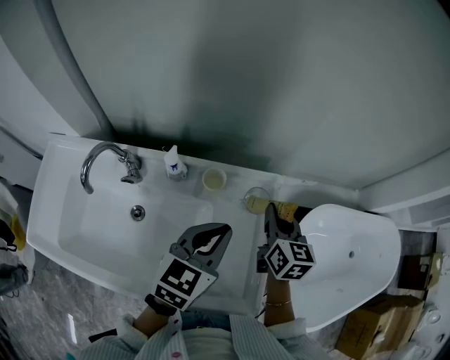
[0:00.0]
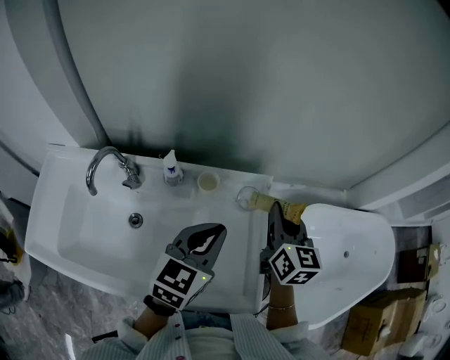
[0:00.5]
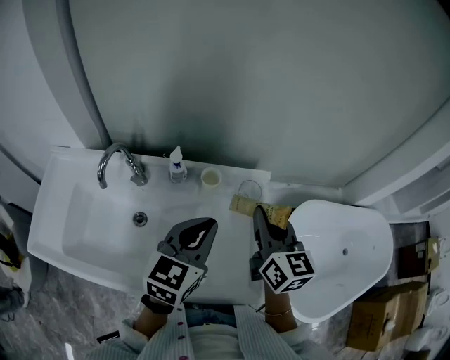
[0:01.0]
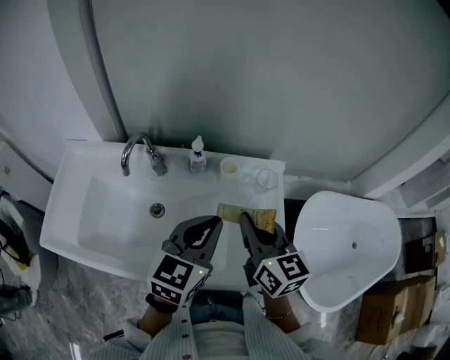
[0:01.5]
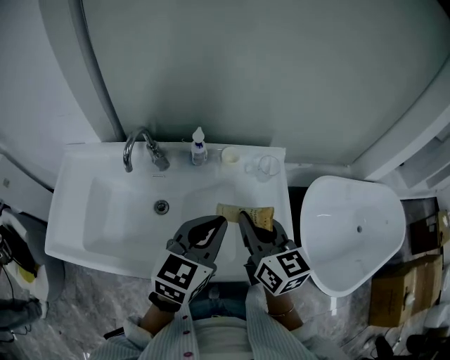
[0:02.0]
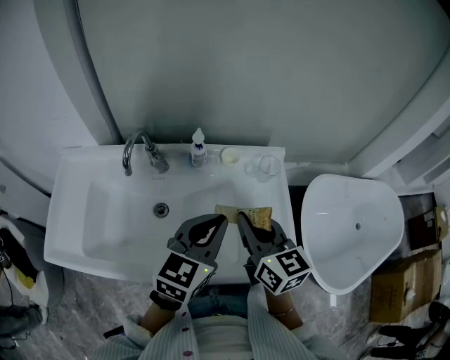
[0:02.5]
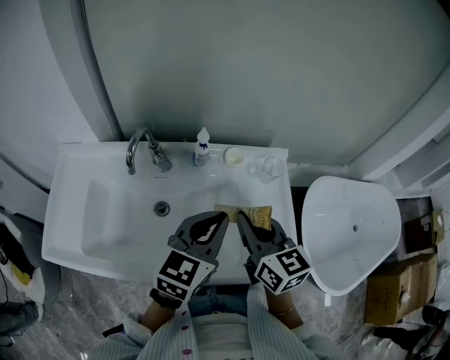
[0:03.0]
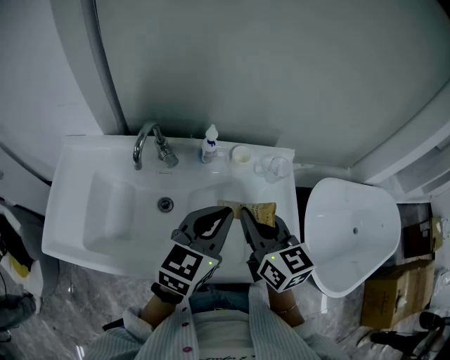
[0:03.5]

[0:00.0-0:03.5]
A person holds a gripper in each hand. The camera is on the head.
0:00.0 to 0:02.0: The left gripper is displaced backward and to the left by roughly 15 cm. Meanwhile the right gripper travels backward, to the left and upward by approximately 25 cm.
0:02.0 to 0:03.5: The grippers make only small movements.

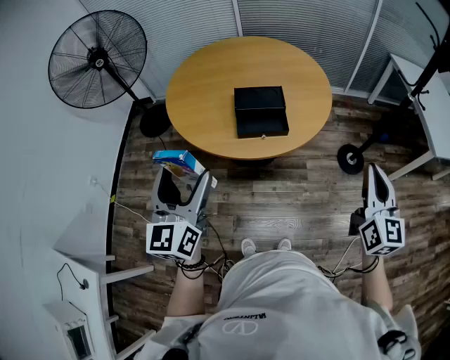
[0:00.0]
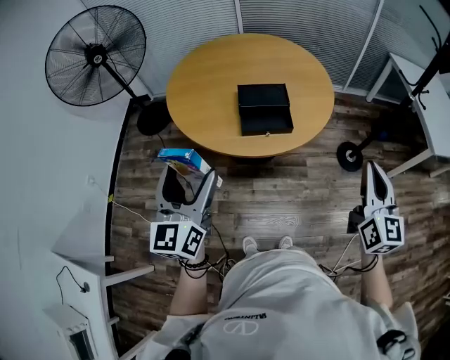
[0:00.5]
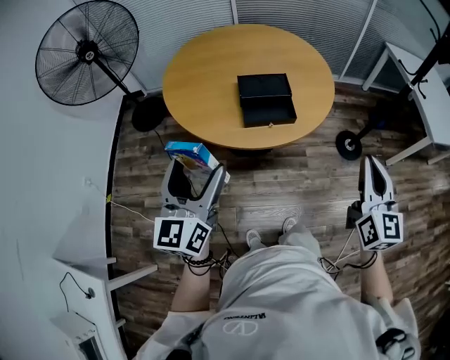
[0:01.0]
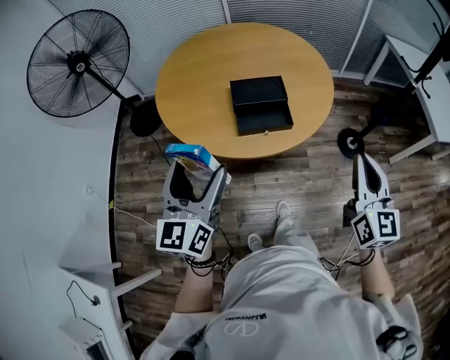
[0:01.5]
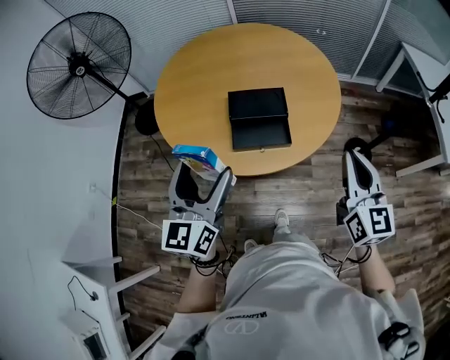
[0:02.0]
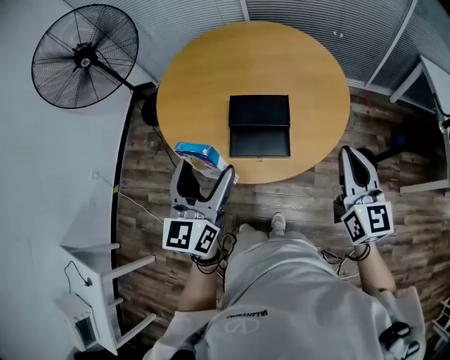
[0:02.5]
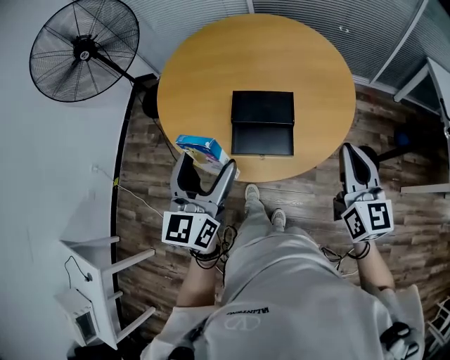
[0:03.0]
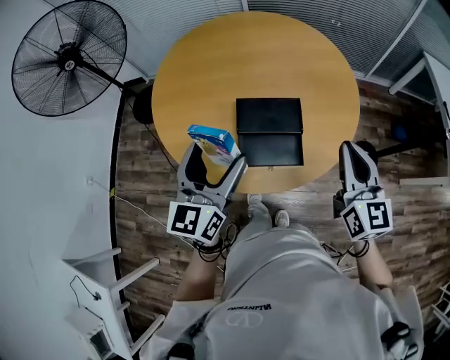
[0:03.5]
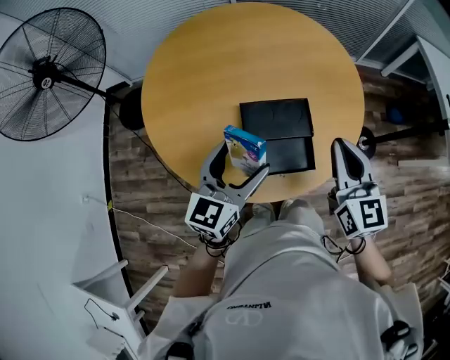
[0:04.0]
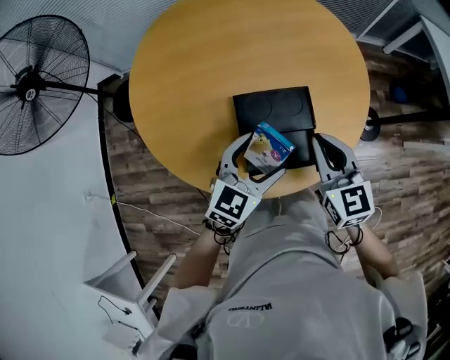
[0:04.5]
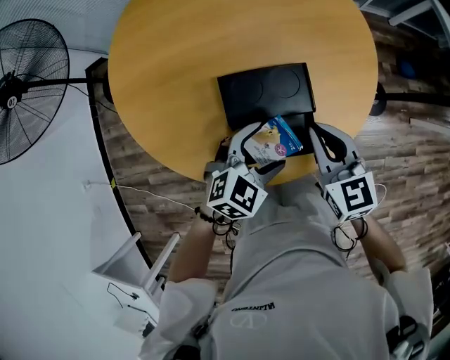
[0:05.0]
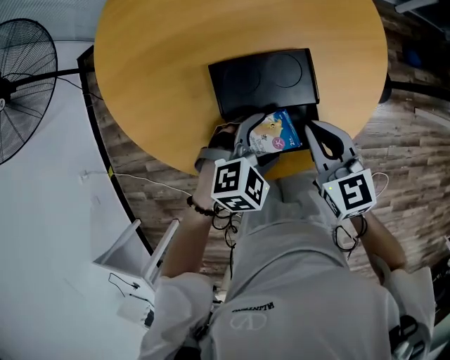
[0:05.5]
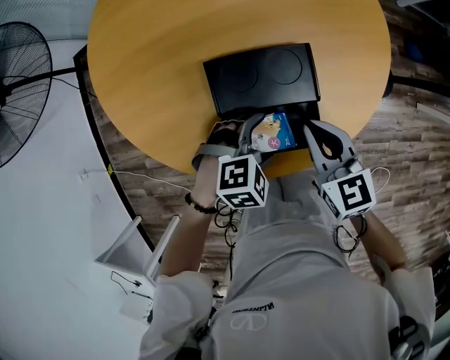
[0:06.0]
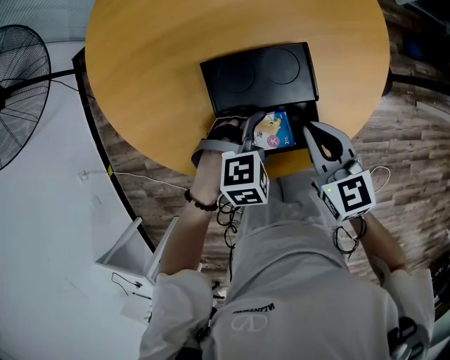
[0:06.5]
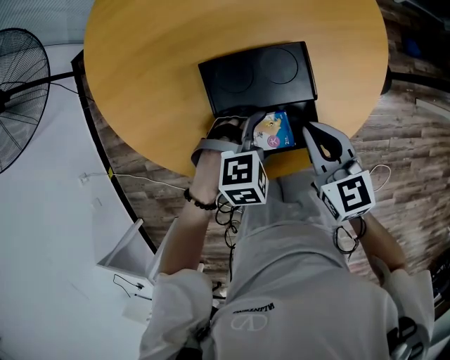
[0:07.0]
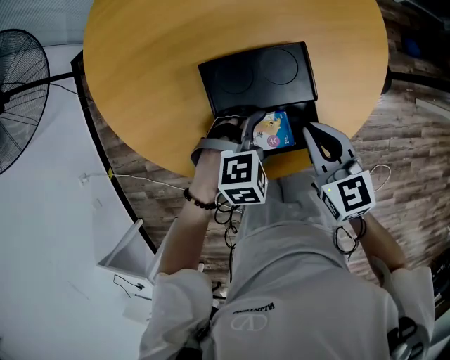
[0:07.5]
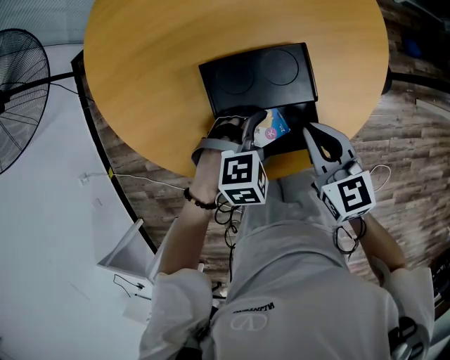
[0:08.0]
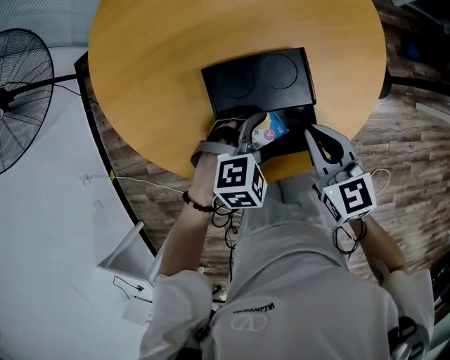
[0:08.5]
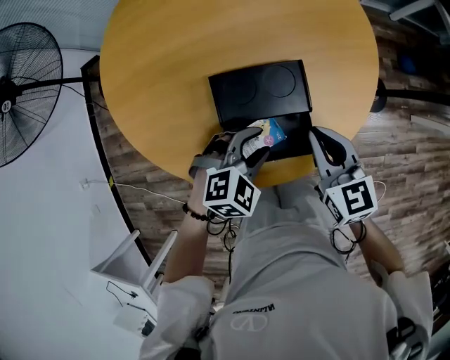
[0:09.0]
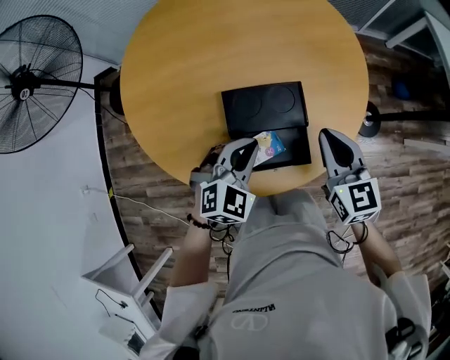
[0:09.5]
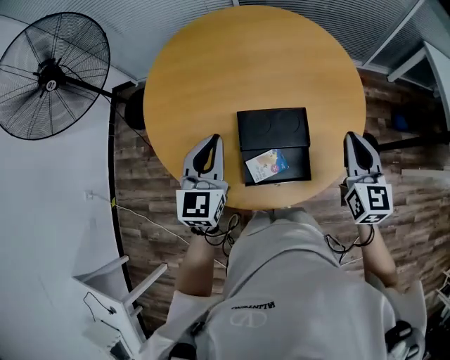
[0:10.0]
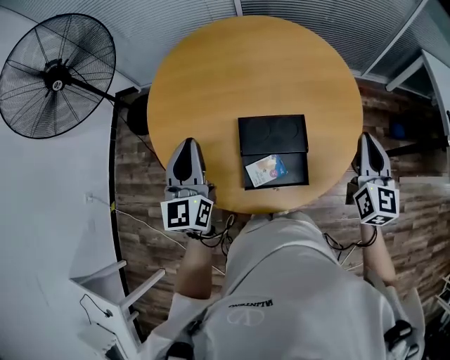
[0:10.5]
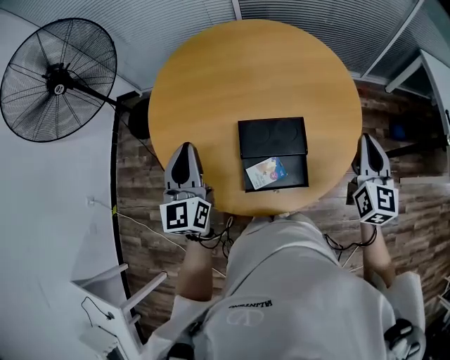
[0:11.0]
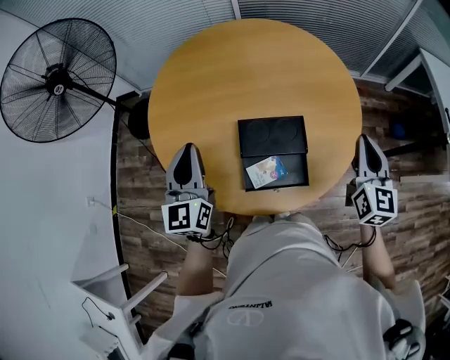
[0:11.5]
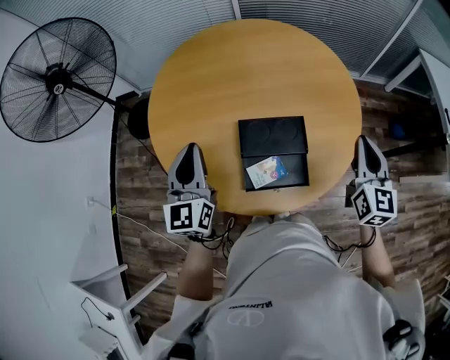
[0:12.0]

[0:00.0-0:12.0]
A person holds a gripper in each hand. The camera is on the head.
0:00.0 to 0:02.0: Both grippers move forward, about 15 cm.
0:02.0 to 0:04.0: The right gripper travels forward and to the left by approximately 25 cm; the left gripper is displaced forward and downward by some 25 cm, and turns by about 20 degrees.
0:04.0 to 0:06.0: The grippers both shift downward by about 25 cm. The right gripper changes its angle by roughly 30 degrees, while the left gripper points its fingers some 50 degrees further downward.
0:06.0 to 0:08.0: The grippers make only small movements.
0:08.0 to 0:10.0: The left gripper is displaced upward and to the left by roughly 30 cm, tilts its fingers about 50 degrees upward, and closes, while the right gripper moves upward and to the right, about 20 cm, and swivels approximately 30 degrees.
0:10.0 to 0:12.0: The right gripper shifts by some 5 cm. Meanwhile the left gripper goes roughly 5 cm to the left.

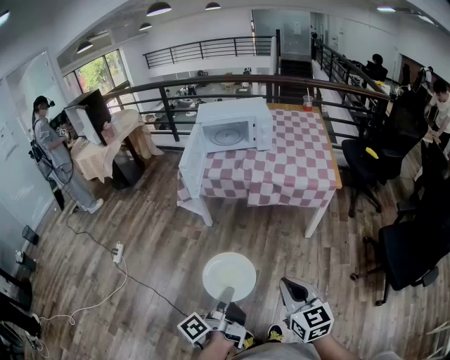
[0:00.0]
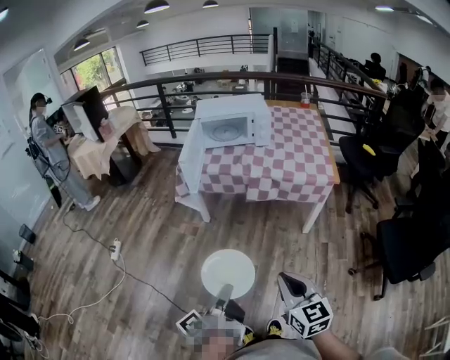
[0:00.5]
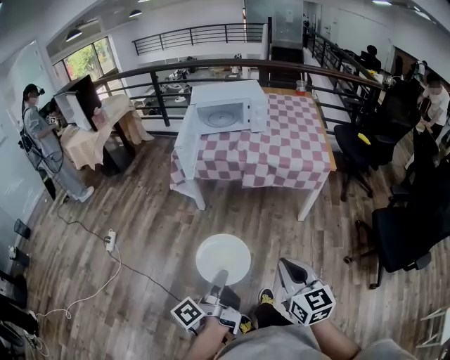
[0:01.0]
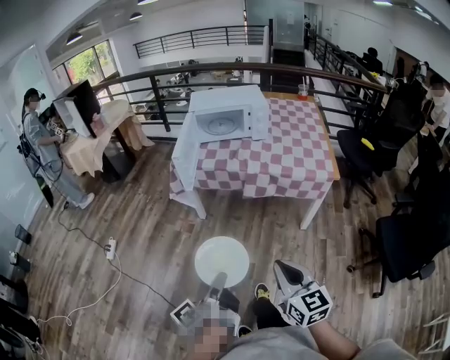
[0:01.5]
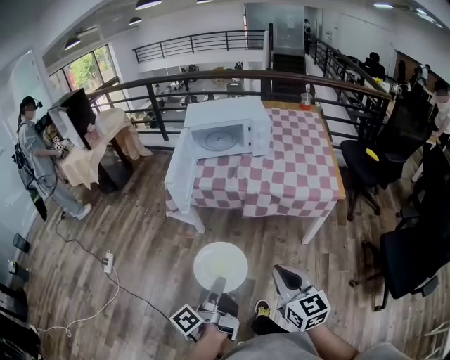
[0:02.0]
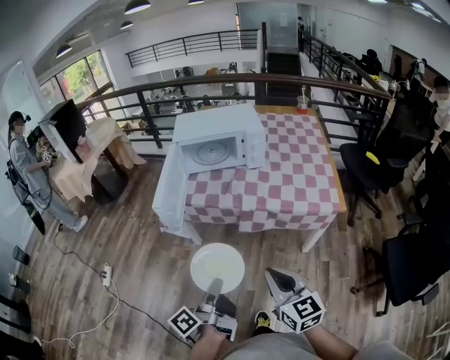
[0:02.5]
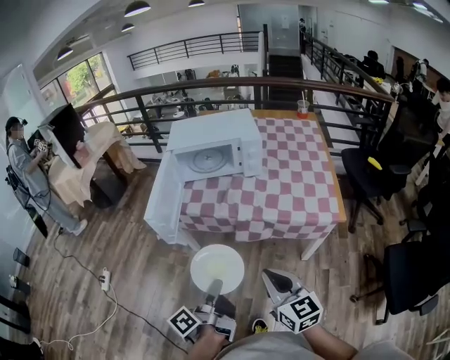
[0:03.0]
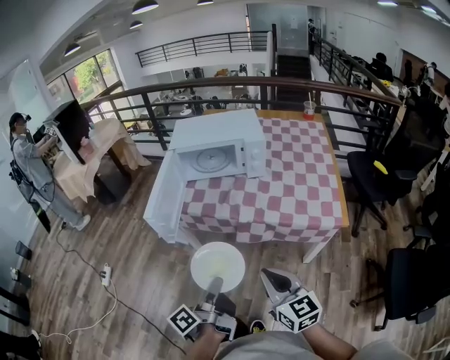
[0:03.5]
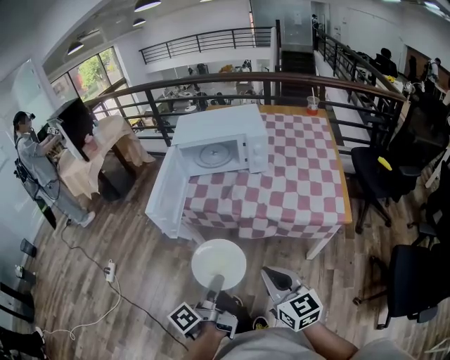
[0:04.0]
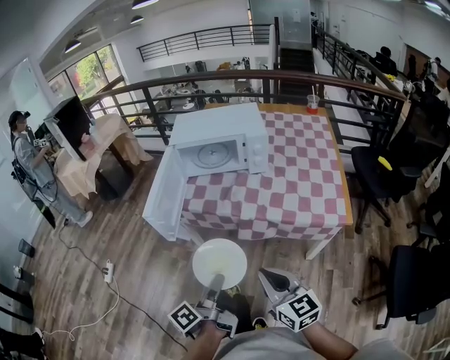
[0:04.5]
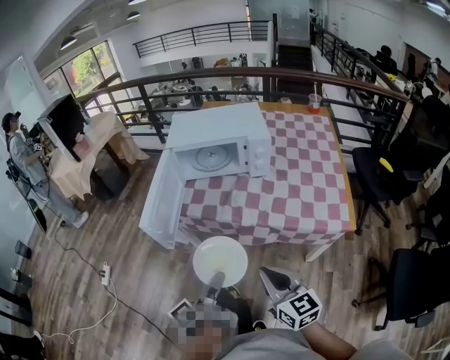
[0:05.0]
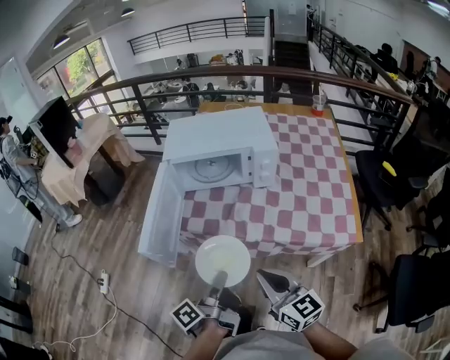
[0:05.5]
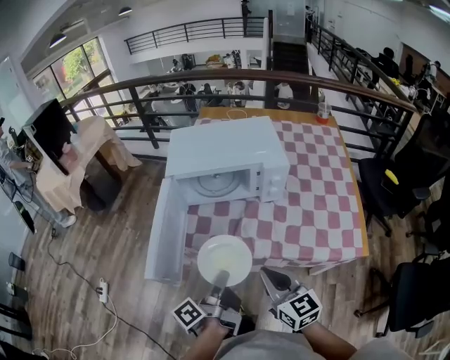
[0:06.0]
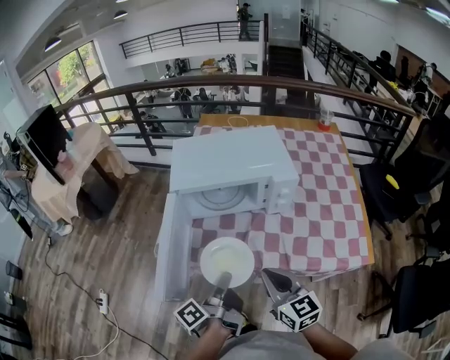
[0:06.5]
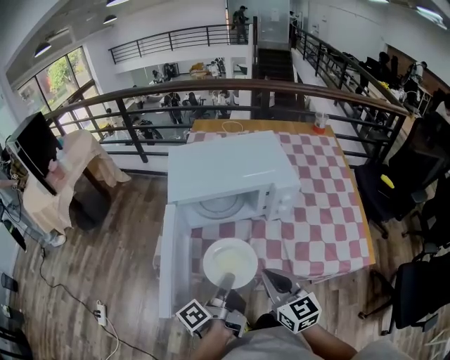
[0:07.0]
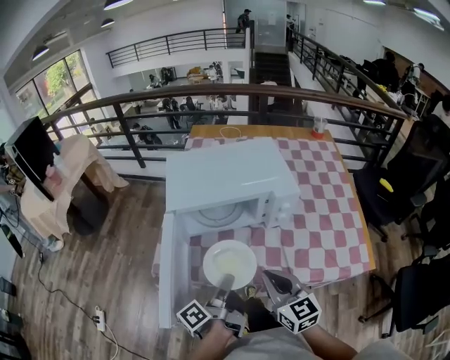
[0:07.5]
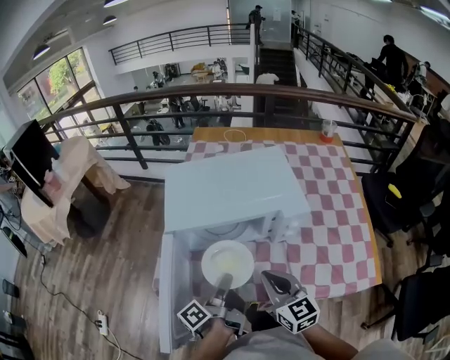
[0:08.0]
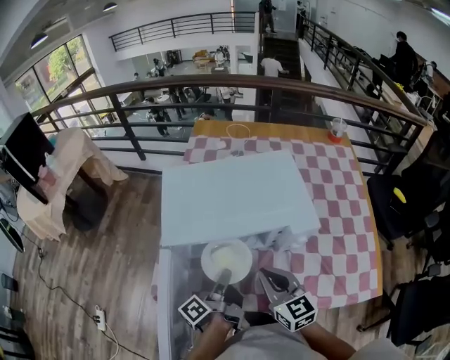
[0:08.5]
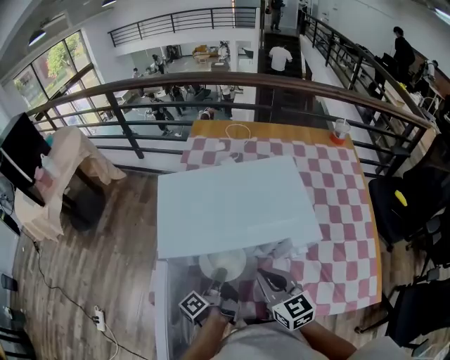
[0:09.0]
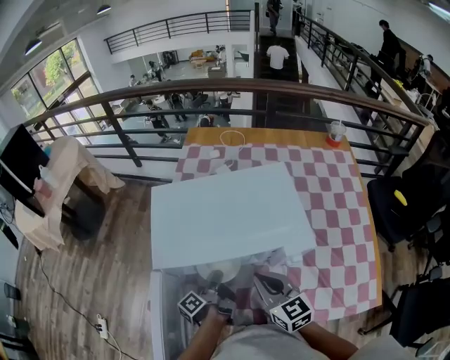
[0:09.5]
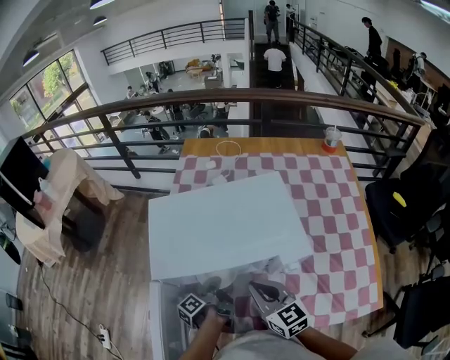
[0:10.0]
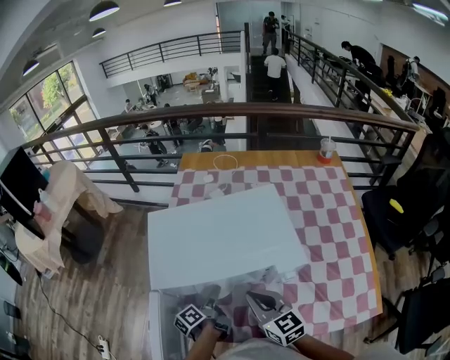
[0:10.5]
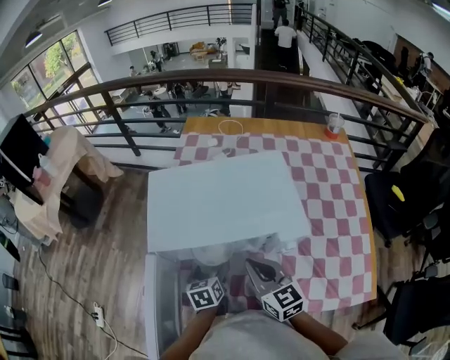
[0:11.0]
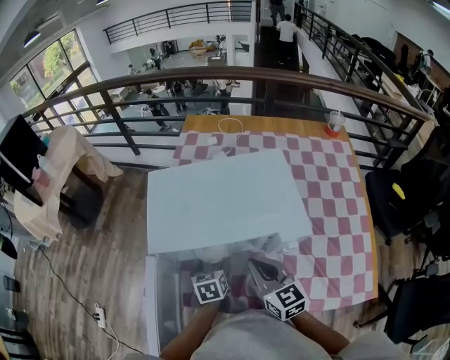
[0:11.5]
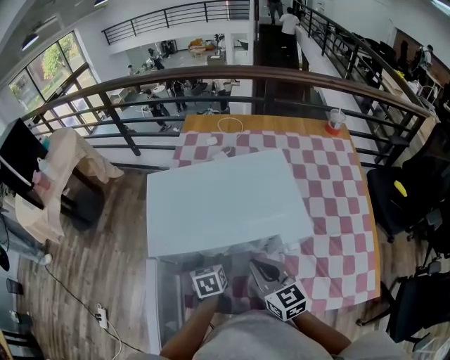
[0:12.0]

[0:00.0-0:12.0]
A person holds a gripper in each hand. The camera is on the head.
0:00.0 to 0:02.0: Both grippers travel together forward, approximately 15 cm.
0:02.0 to 0:04.0: The right gripper shifts approximately 15 cm forward, while the left gripper goes about 15 cm forward and to the right.
0:04.0 to 0:06.0: The grippers both shift forward by roughly 25 cm.
0:06.0 to 0:08.0: The two grippers go approximately 20 cm forward.
0:08.0 to 0:10.0: The left gripper is displaced forward and downward by approximately 20 cm, while the right gripper goes about 15 cm forward.
0:10.0 to 0:12.0: The left gripper rotates around the line of its fingers by approximately 70 degrees, clockwise from behind, and opens.
